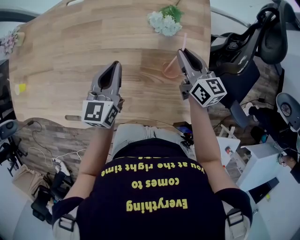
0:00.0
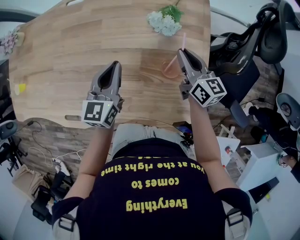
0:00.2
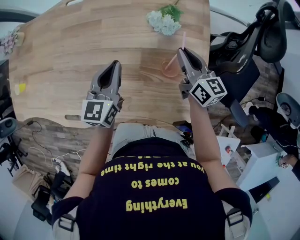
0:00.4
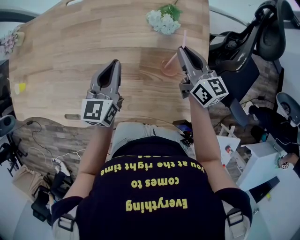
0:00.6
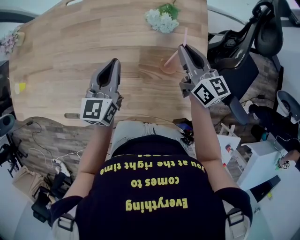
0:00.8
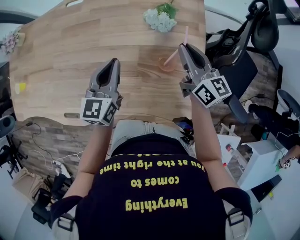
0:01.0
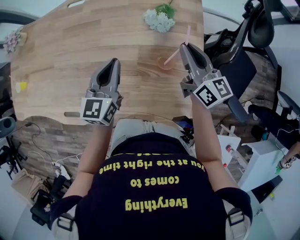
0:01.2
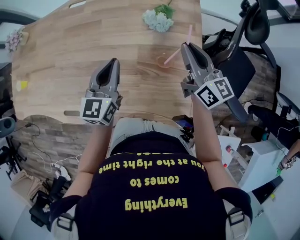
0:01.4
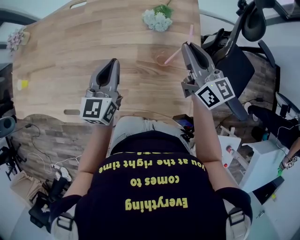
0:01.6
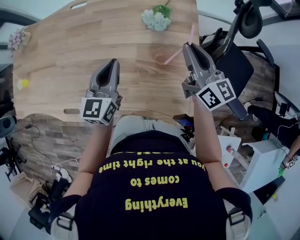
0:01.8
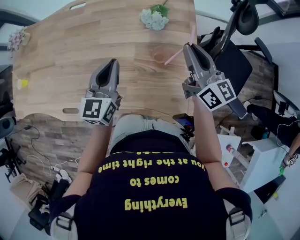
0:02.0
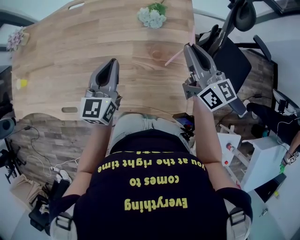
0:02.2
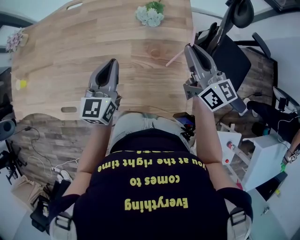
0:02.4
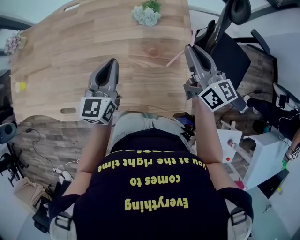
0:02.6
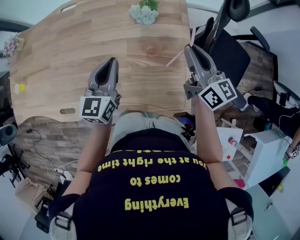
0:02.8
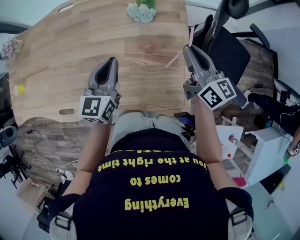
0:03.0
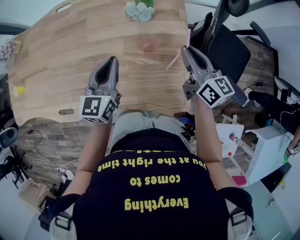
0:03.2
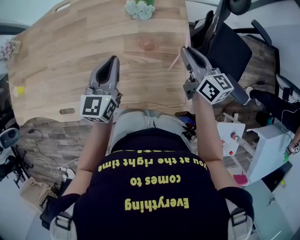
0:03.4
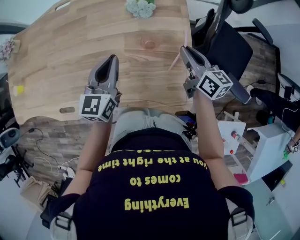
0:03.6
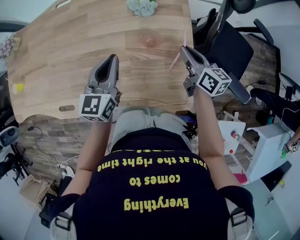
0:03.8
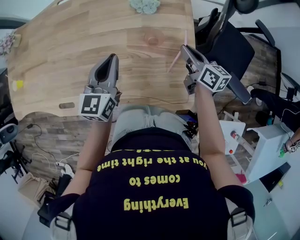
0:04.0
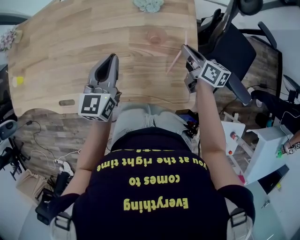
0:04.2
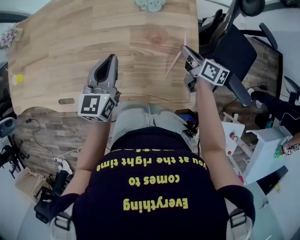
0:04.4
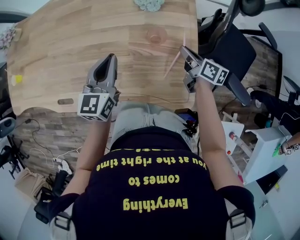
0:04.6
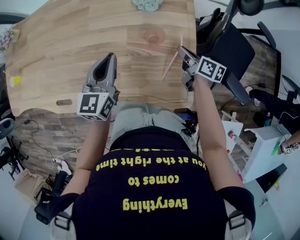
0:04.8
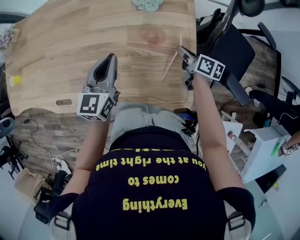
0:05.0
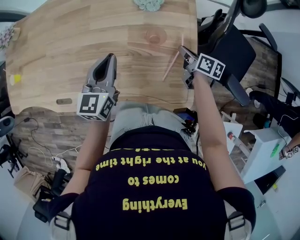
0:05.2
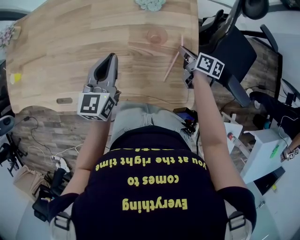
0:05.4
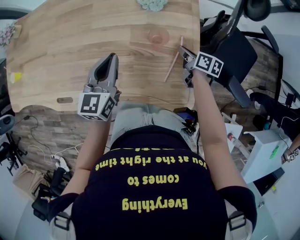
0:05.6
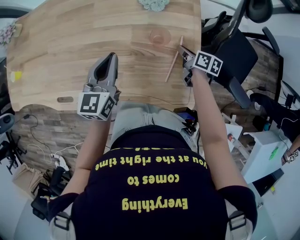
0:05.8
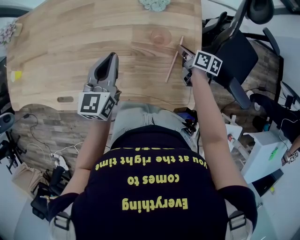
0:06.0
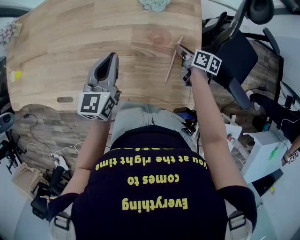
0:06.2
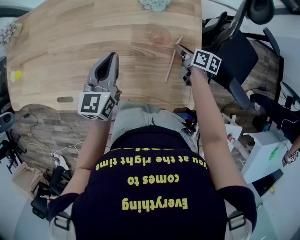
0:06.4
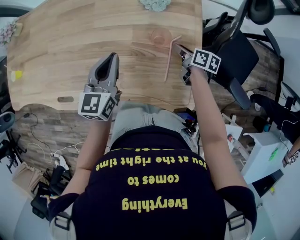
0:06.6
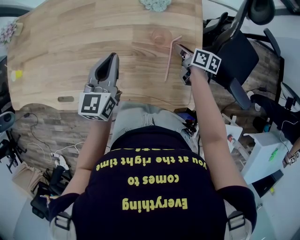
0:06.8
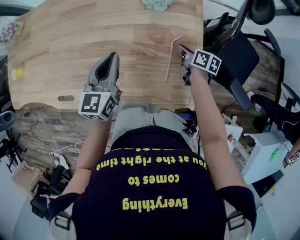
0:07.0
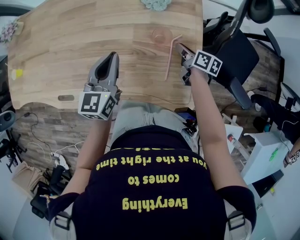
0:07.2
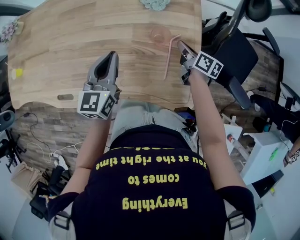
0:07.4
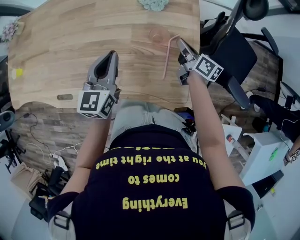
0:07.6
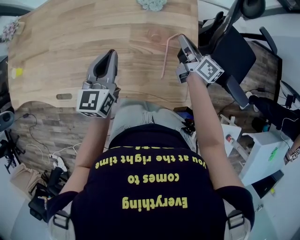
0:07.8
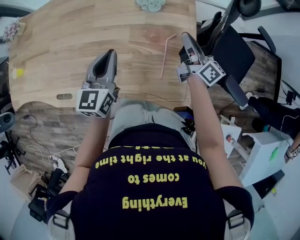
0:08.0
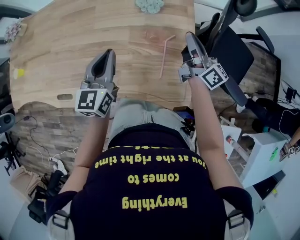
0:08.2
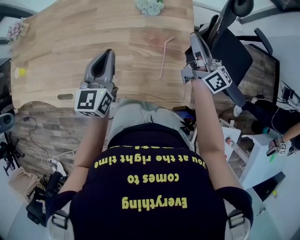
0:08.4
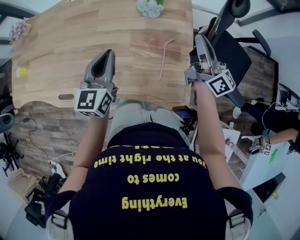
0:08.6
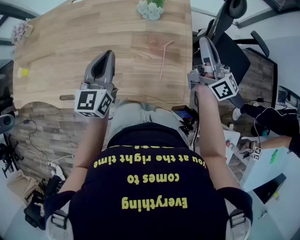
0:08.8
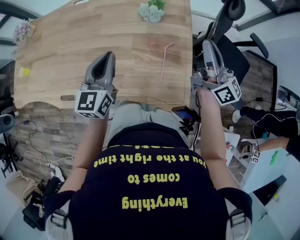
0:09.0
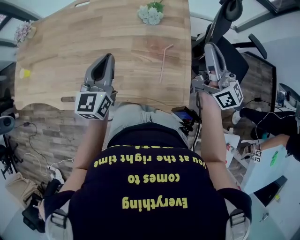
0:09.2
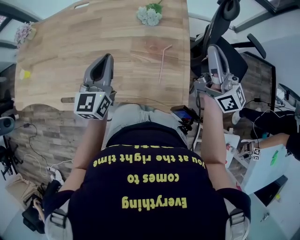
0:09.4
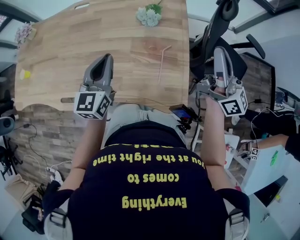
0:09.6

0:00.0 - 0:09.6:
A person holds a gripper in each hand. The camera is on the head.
0:00.0 - 0:01.6: The left gripper moves approximately 5 cm; the right gripper shifts approximately 15 cm upward and backward.
0:01.6 - 0:03.2: The left gripper shifts by roughly 5 cm, while the right gripper travels backward and to the right by approximately 10 cm.
0:03.2 - 0:04.8: The right gripper goes approximately 15 cm downward, and turns by approximately 30 degrees.
0:04.8 - 0:06.4: The right gripper shifts approximately 5 cm downward.
0:06.4 - 0:08.0: The right gripper travels upward by about 15 cm, tilts its fingers approximately 40 degrees upward, and closes its fingers.
0:08.0 - 0:09.6: The left gripper moves upward, approximately 5 cm. Meanwhile the right gripper heads upward and backward, covering roughly 25 cm, and changes its angle by approximately 30 degrees.

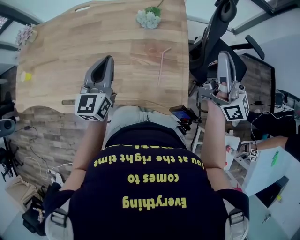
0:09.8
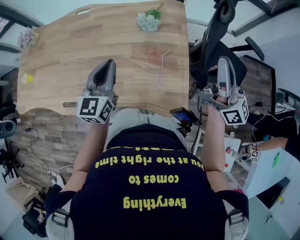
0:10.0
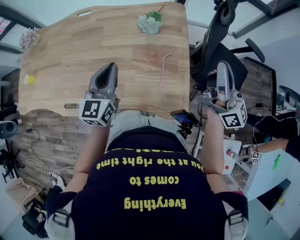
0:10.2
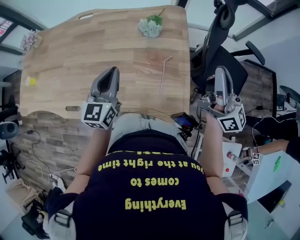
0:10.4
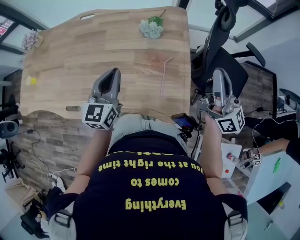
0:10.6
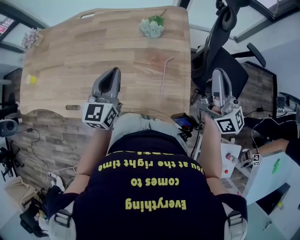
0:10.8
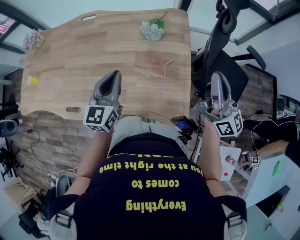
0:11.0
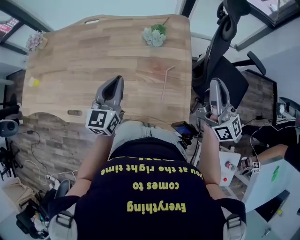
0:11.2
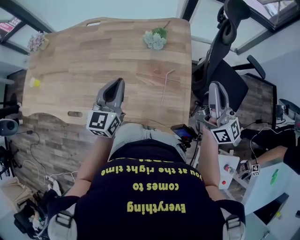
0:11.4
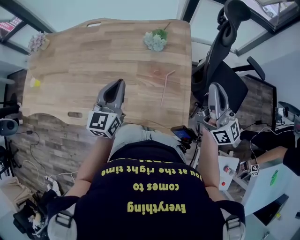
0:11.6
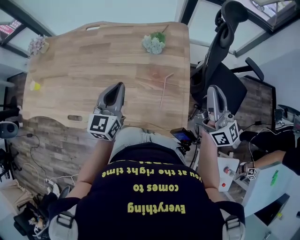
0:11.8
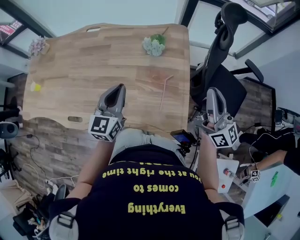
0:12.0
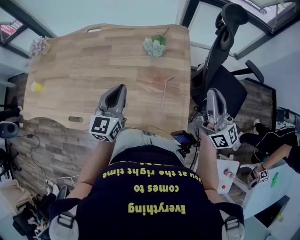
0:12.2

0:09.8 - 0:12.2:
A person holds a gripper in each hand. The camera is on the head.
0:09.8 - 0:11.0: There are only small adjustments of the grippers.
0:11.0 - 0:12.2: Neither gripper changes place.

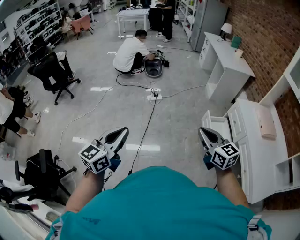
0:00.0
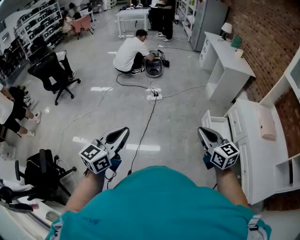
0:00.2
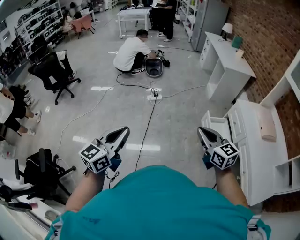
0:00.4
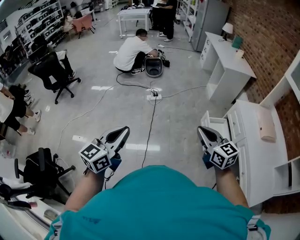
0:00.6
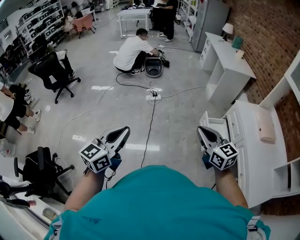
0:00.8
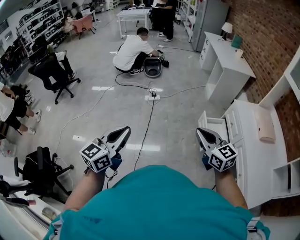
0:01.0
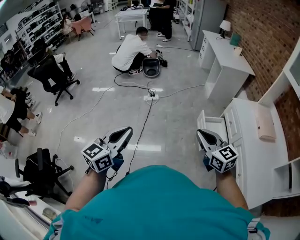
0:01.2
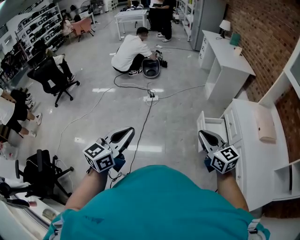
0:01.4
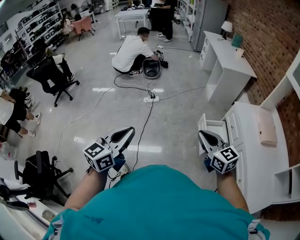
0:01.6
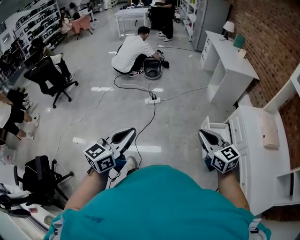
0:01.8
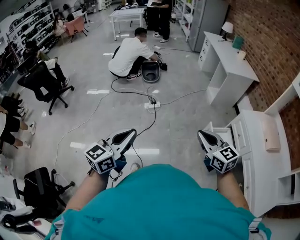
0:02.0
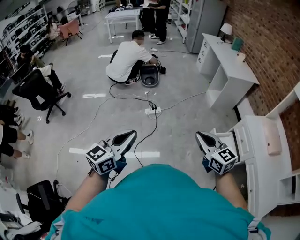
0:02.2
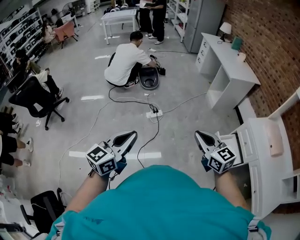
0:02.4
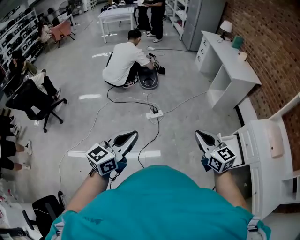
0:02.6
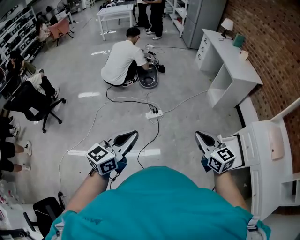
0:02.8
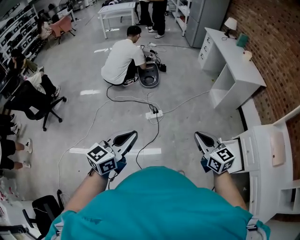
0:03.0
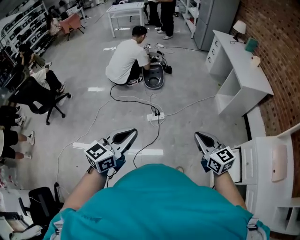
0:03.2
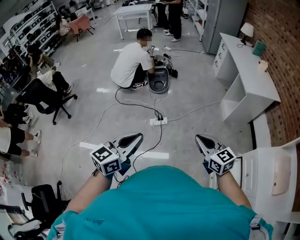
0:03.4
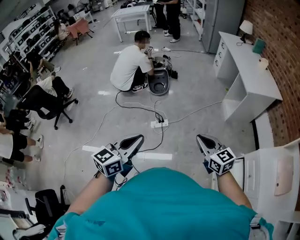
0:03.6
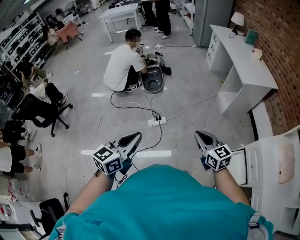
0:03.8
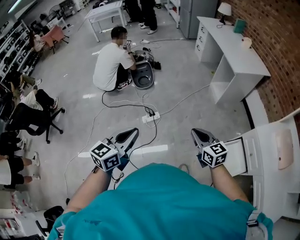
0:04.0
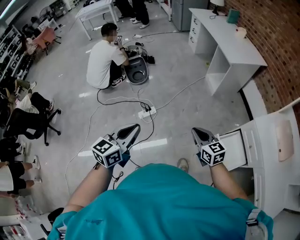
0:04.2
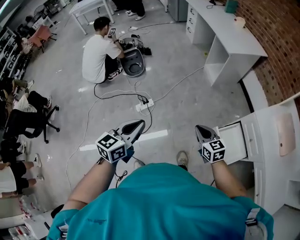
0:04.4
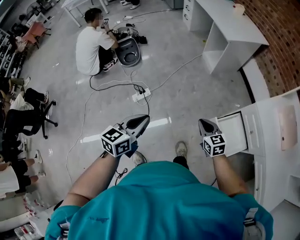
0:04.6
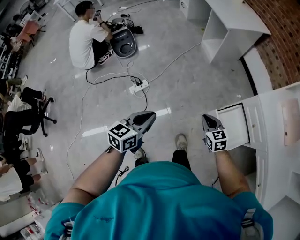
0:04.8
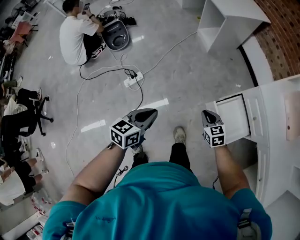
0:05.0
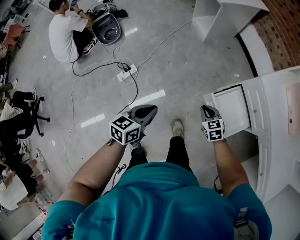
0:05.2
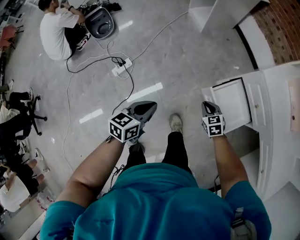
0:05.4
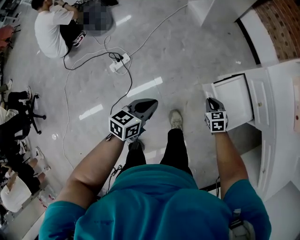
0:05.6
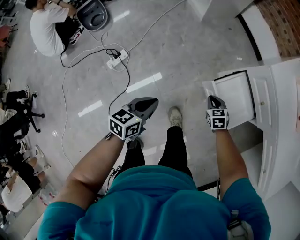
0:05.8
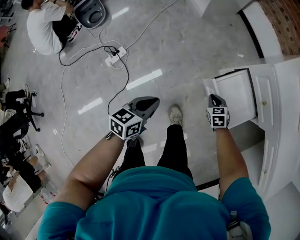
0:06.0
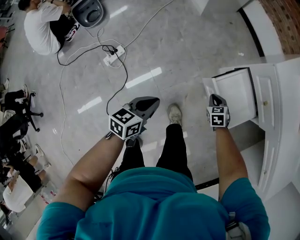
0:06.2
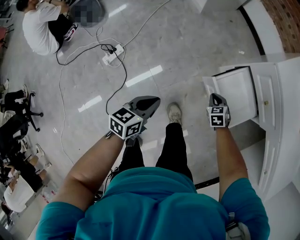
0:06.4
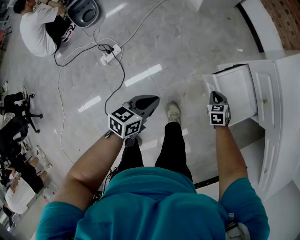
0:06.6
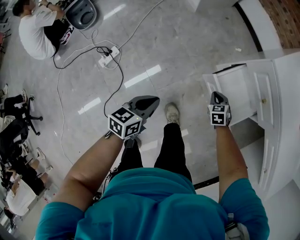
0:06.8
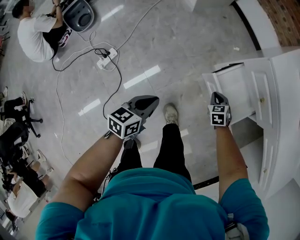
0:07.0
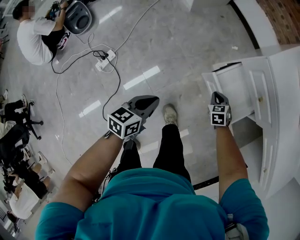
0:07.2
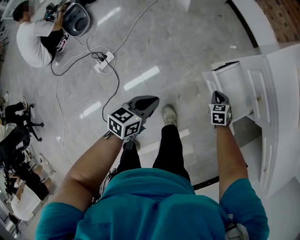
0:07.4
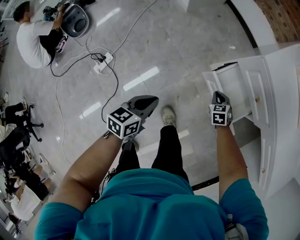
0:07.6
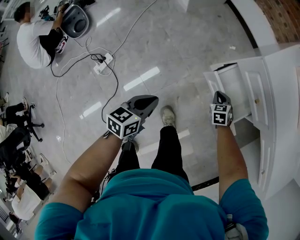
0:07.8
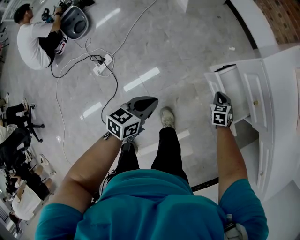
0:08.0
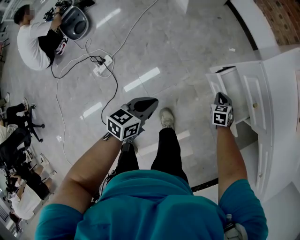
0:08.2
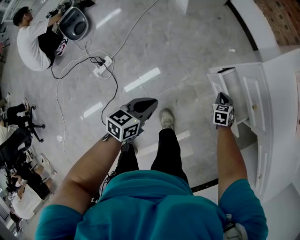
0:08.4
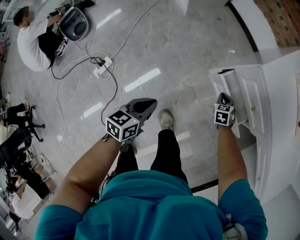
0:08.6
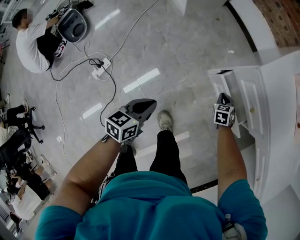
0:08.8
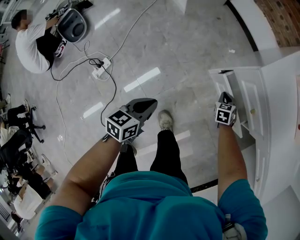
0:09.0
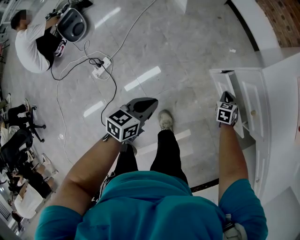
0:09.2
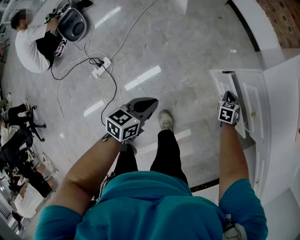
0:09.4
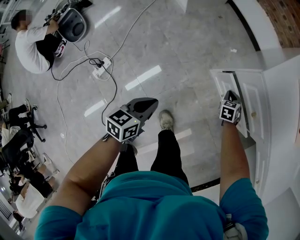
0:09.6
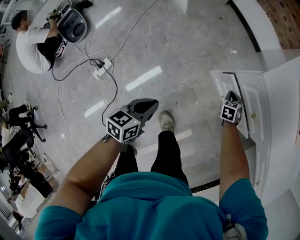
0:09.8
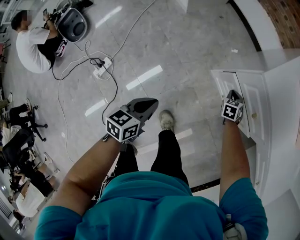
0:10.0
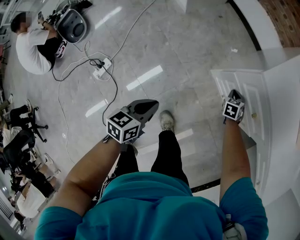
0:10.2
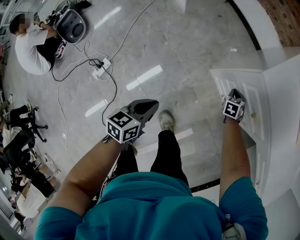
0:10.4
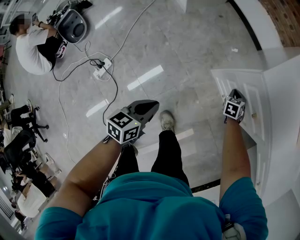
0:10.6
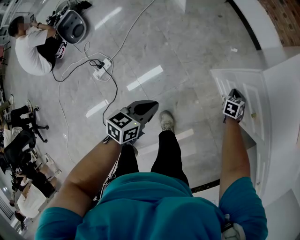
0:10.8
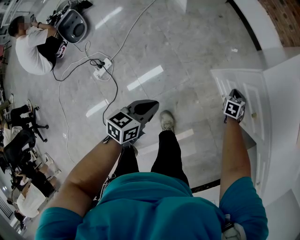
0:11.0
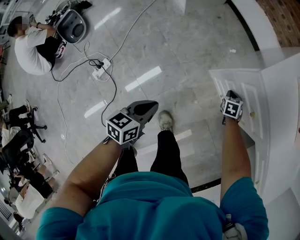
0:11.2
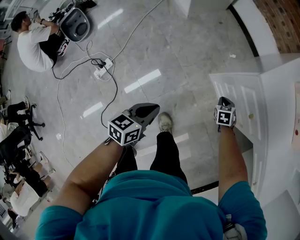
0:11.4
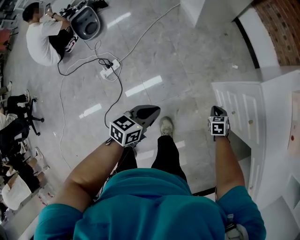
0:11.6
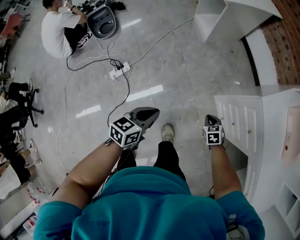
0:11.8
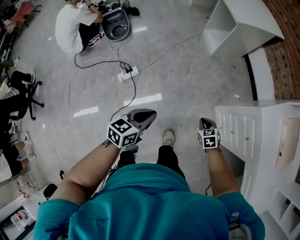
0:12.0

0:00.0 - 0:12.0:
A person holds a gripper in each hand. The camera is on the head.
0:00.0 - 0:01.6: The right gripper heads to the right, covering about 10 cm. The left gripper goes about 15 cm to the right and forward.
0:01.6 - 0:03.0: The grippers both shift forward and to the left by some 40 cm.
0:03.0 - 0:04.4: The right gripper is displaced to the right, downward and forward by some 25 cm. The left gripper heads to the right, forward and downward, covering approximately 25 cm.
0:04.4 - 0:06.0: The two grippers go about 35 cm downward. The left gripper changes its angle by approximately 30 degrees. The right gripper turns by about 40 degrees.
0:06.0 - 0:07.6: The left gripper heads forward and to the right, covering roughly 10 cm. The right gripper heads to the right and forward, covering some 10 cm.
0:07.6 - 0:09.0: The right gripper moves forward, approximately 10 cm; the left gripper is displaced forward by some 5 cm.
0:09.0 - 0:10.4: The right gripper moves forward, some 5 cm.
0:10.4 - 0:12.0: The right gripper ends up approximately 35 cm from where it was, and rotates roughly 40 degrees, while the left gripper moves about 25 cm.
